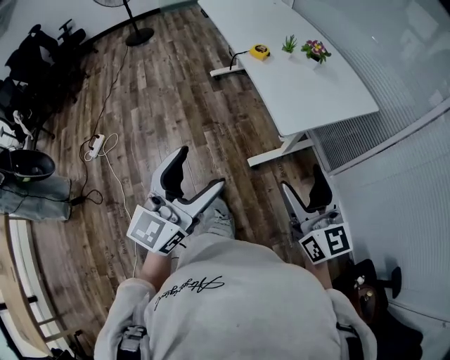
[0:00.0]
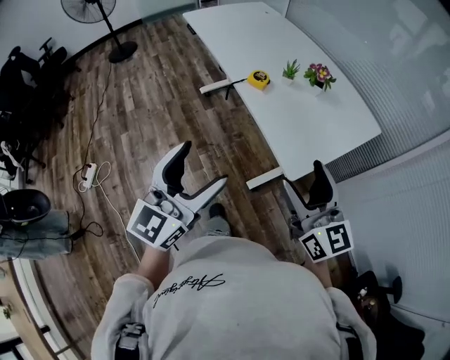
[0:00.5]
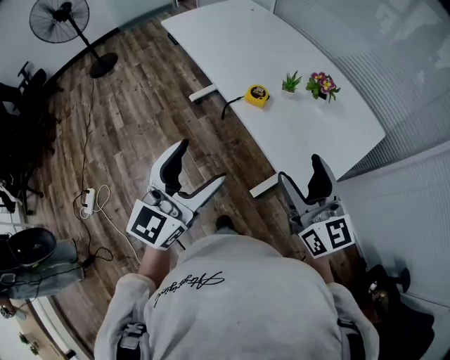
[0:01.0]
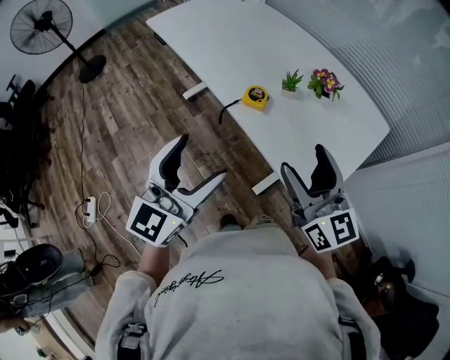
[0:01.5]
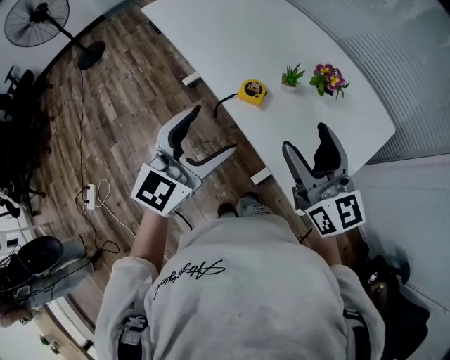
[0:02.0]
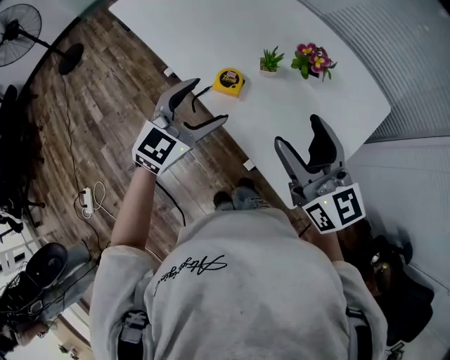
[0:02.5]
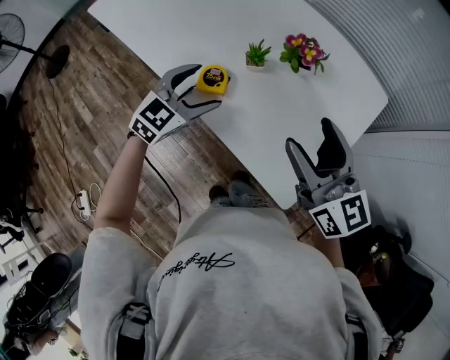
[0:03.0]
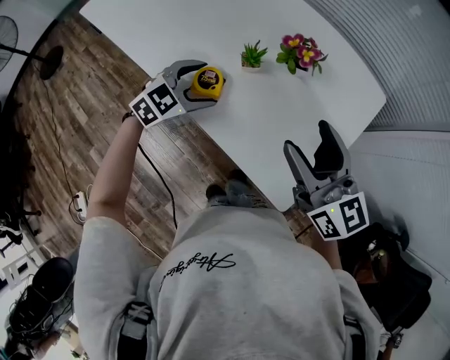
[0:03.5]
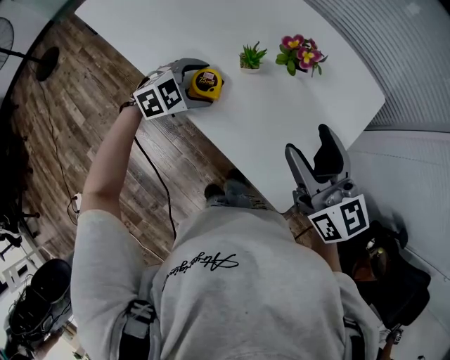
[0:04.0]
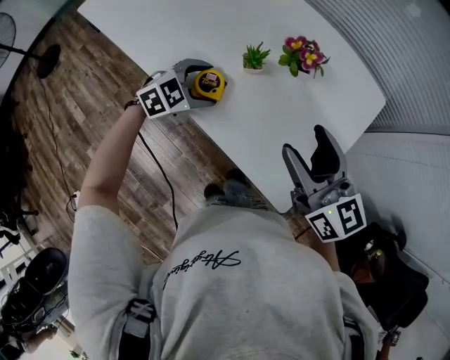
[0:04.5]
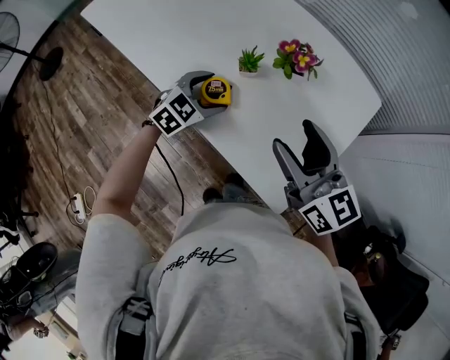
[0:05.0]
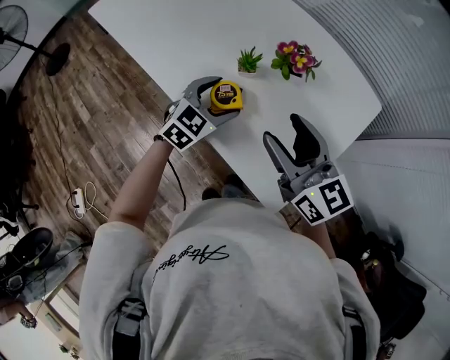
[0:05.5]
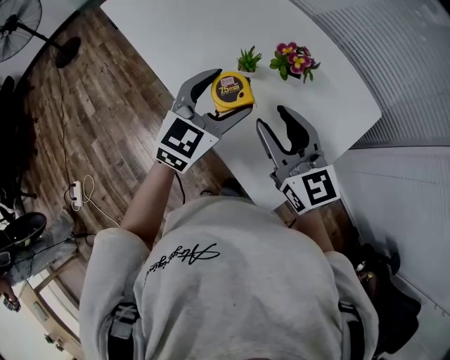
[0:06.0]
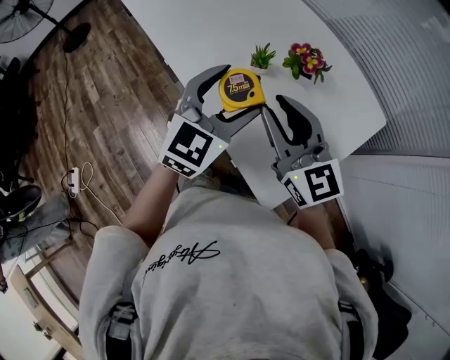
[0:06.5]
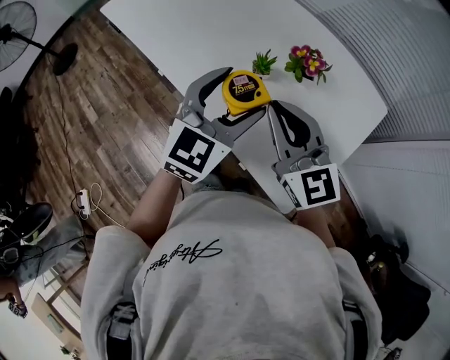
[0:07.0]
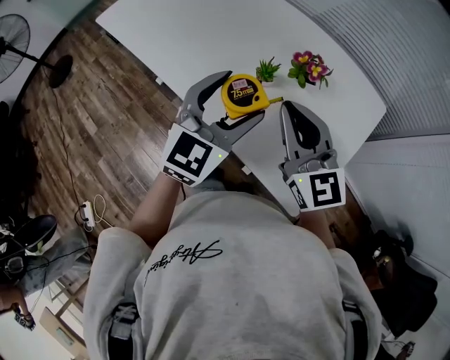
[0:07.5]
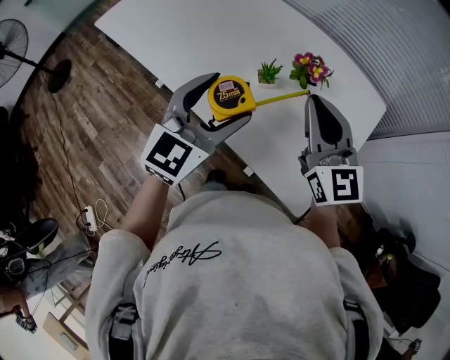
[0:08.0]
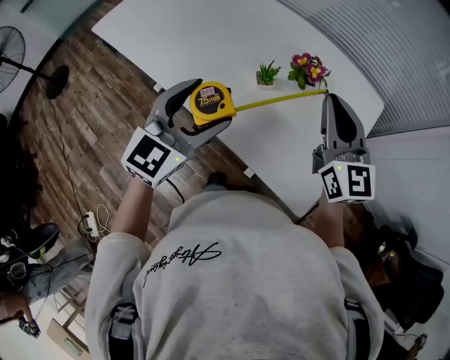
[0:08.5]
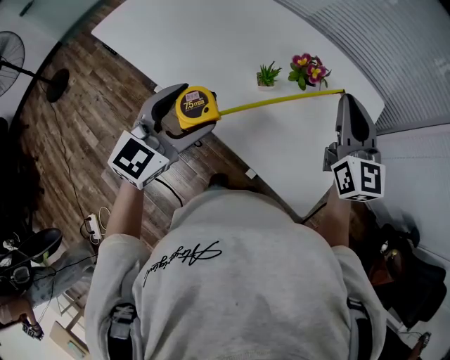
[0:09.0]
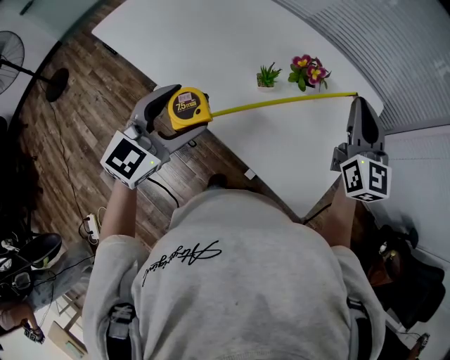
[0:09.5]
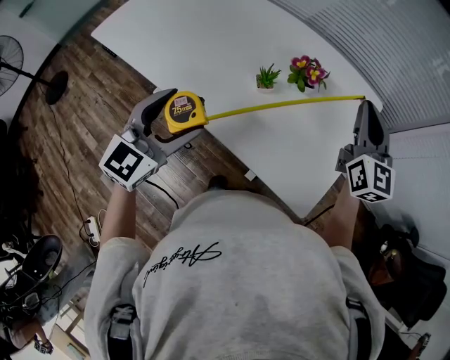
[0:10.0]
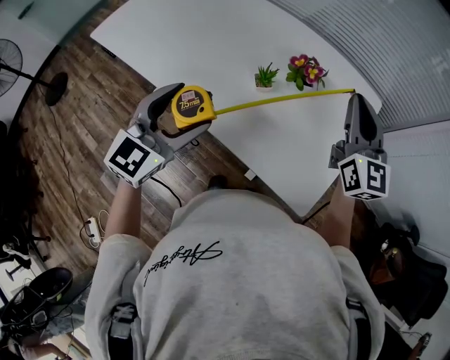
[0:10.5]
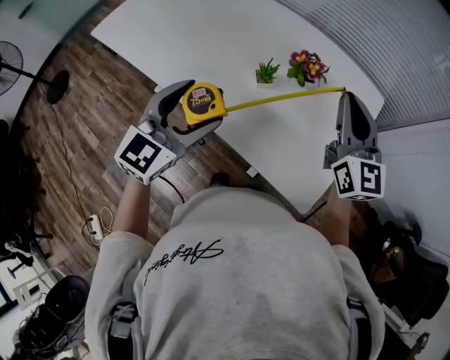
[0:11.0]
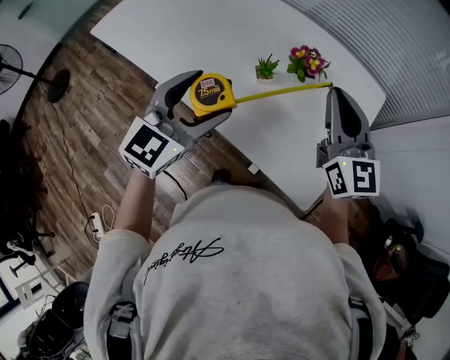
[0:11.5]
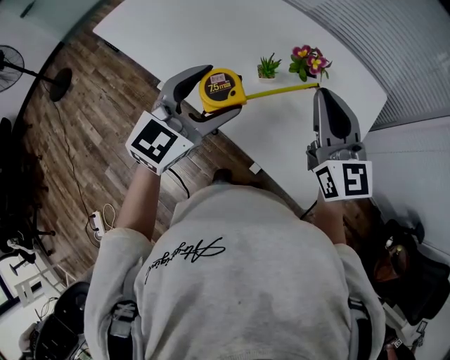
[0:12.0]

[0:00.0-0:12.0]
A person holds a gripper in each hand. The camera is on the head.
0.0 to 2.0 s: Both grippers move forward, roughly 40 cm. The left gripper changes its angle by about 20 degrees.
2.0 to 4.0 s: The left gripper is displaced downward and forward by roughly 30 cm, and angles its fingers downward, by some 40 degrees. The right gripper shifts approximately 10 cm to the right, forward and downward.
4.0 to 6.0 s: The right gripper closes its fingers. The left gripper goes some 15 cm upward and to the right, and points its fingers approximately 30 degrees further upward.
6.0 to 8.0 s: The right gripper is displaced upward by approximately 5 cm, turns by roughly 20 degrees, and closes its fingers, while the left gripper goes about 10 cm to the left.
8.0 to 10.0 s: The right gripper shifts some 15 cm to the right and forward, and changes its angle by approximately 20 degrees, while the left gripper shifts some 10 cm to the left.
10.0 to 12.0 s: The right gripper is displaced to the left and backward by approximately 15 cm, while the left gripper is displaced to the right by roughly 5 cm.

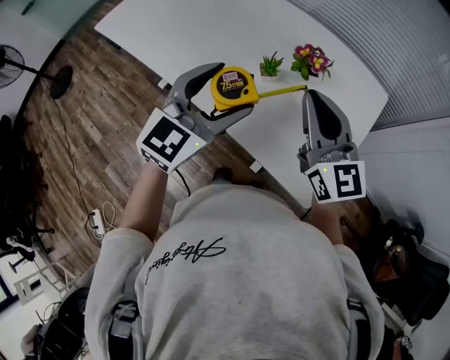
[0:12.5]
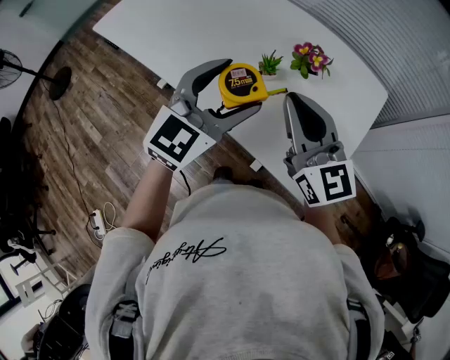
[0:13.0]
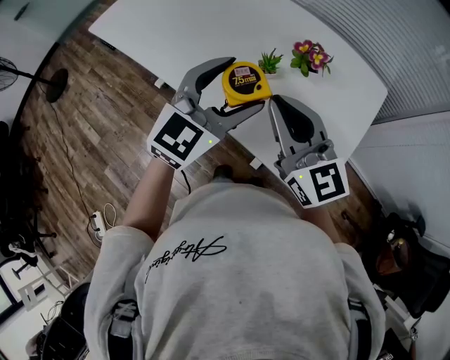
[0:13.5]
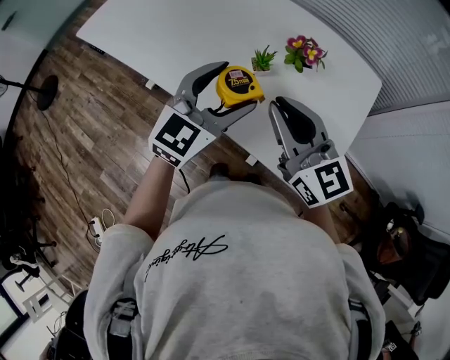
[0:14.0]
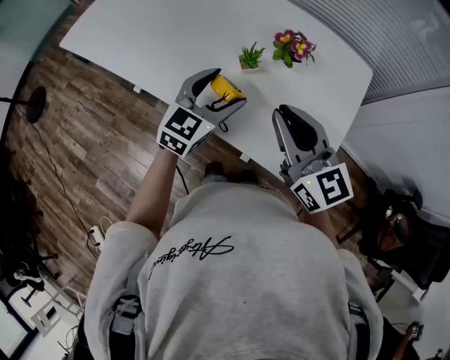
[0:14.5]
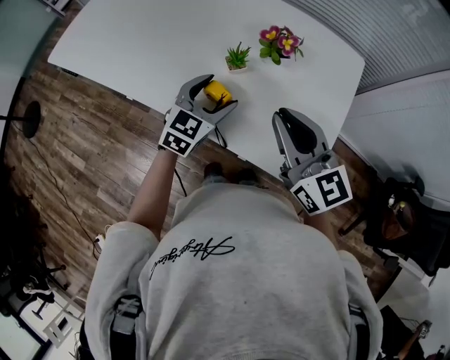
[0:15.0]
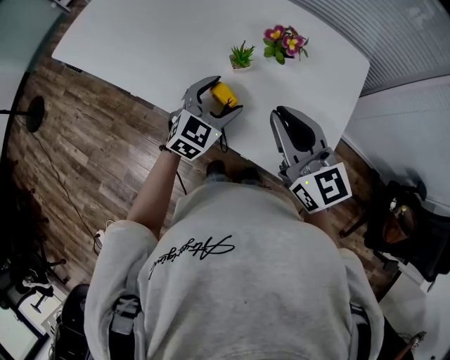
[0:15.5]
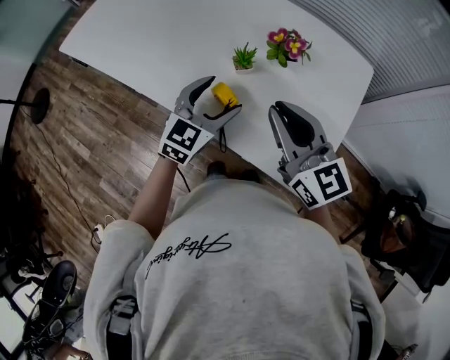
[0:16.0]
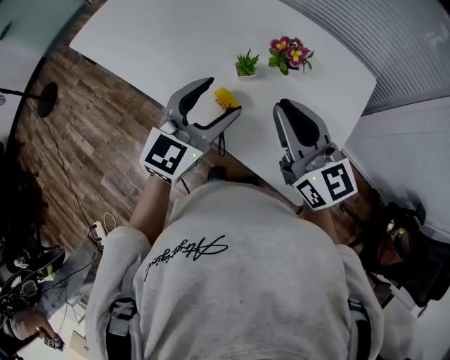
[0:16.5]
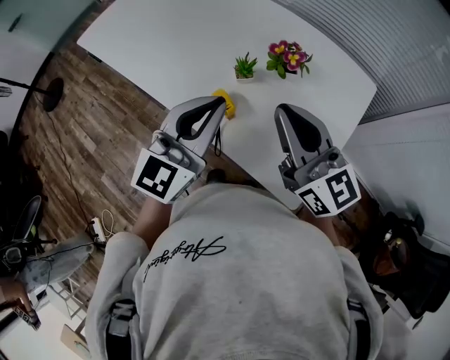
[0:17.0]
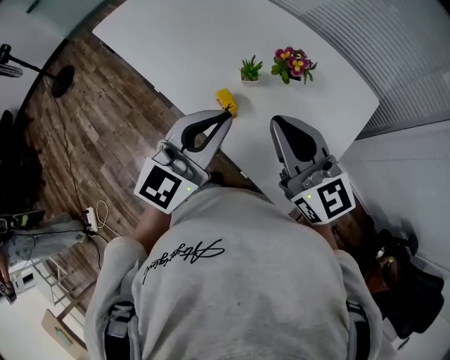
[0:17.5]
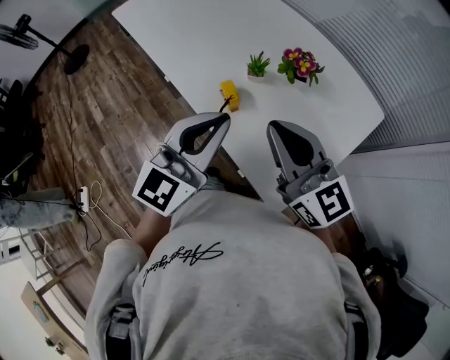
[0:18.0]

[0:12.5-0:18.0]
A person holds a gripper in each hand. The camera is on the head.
12.5 to 14.5 s: The left gripper is displaced downward by roughly 10 cm. The right gripper changes place by roughly 5 cm.
14.5 to 16.0 s: The grippers stay close to where they were, moving slightly.
16.0 to 18.0 s: The left gripper is displaced upward and backward by some 20 cm, turns by approximately 30 degrees, and closes. The right gripper changes place by roughly 5 cm, and rotates roughly 20 degrees.

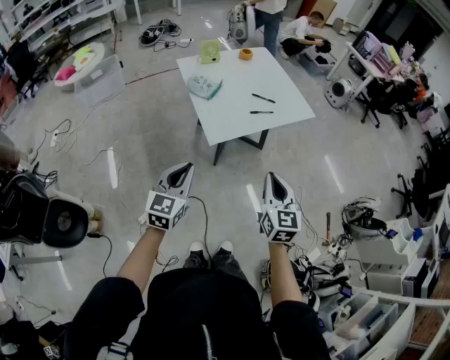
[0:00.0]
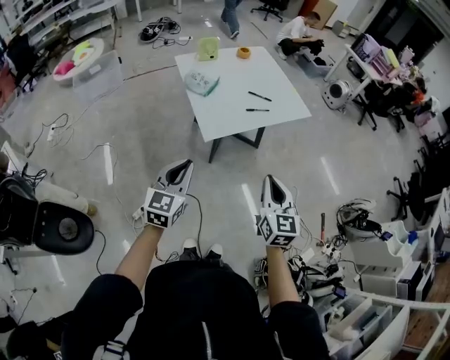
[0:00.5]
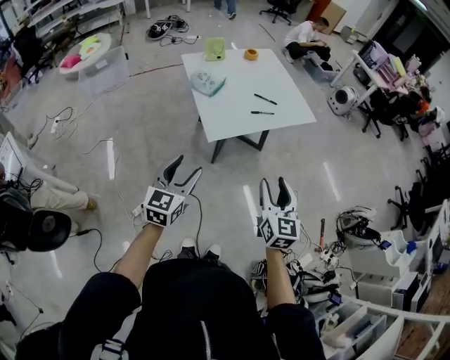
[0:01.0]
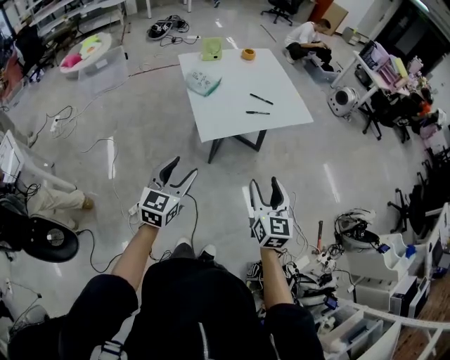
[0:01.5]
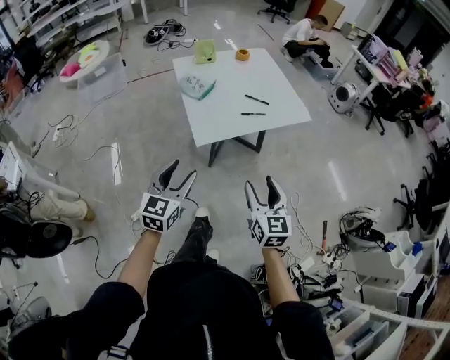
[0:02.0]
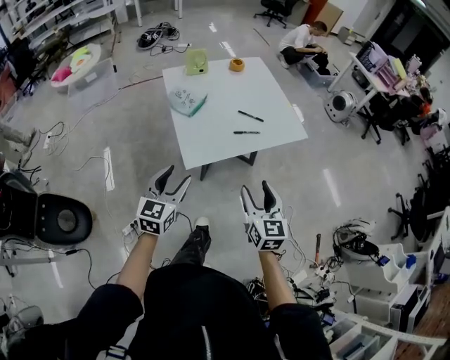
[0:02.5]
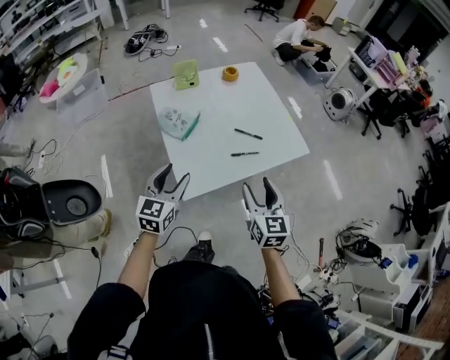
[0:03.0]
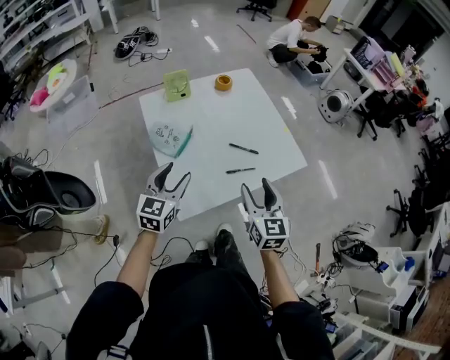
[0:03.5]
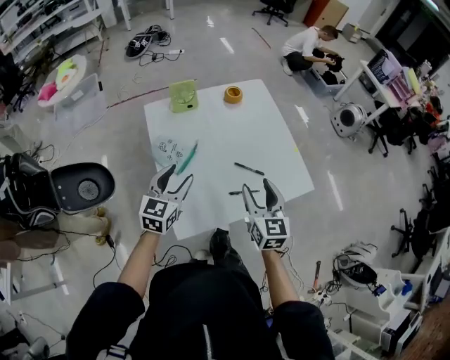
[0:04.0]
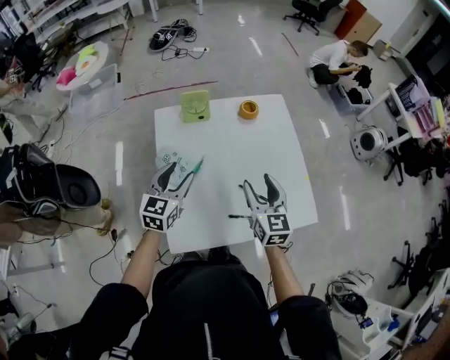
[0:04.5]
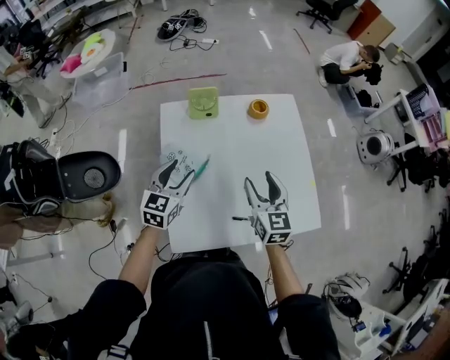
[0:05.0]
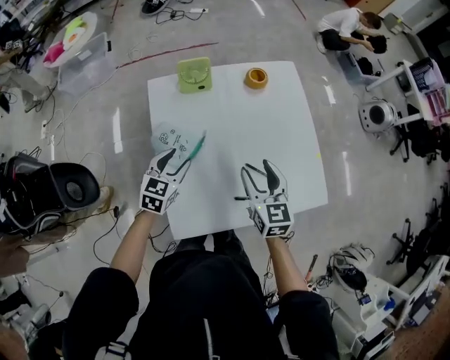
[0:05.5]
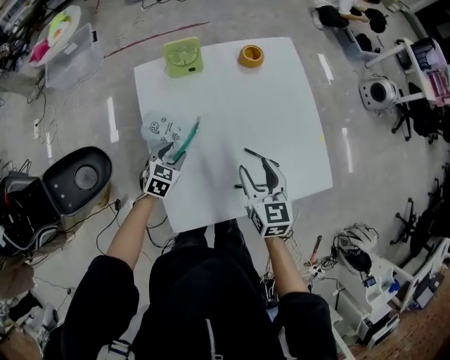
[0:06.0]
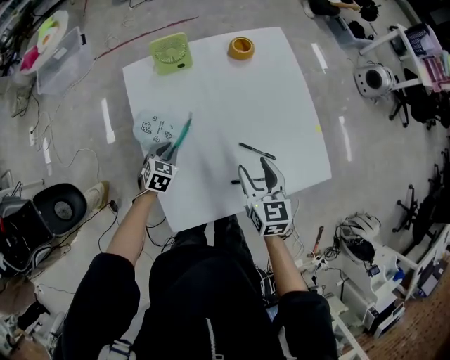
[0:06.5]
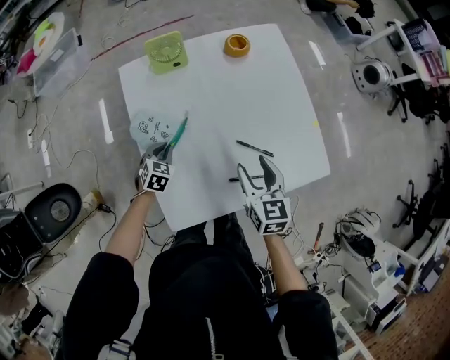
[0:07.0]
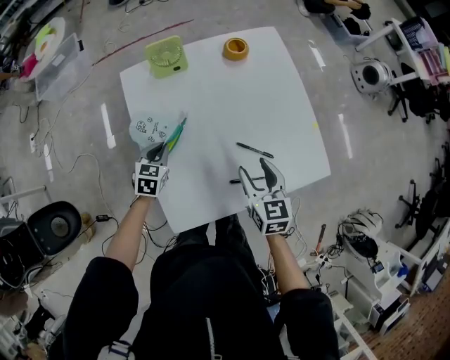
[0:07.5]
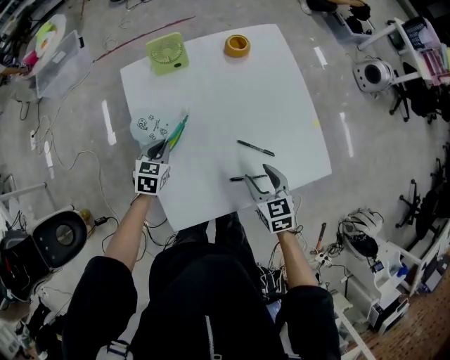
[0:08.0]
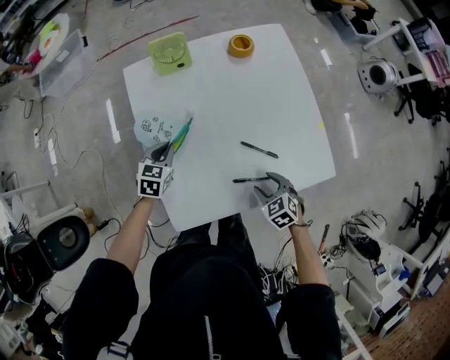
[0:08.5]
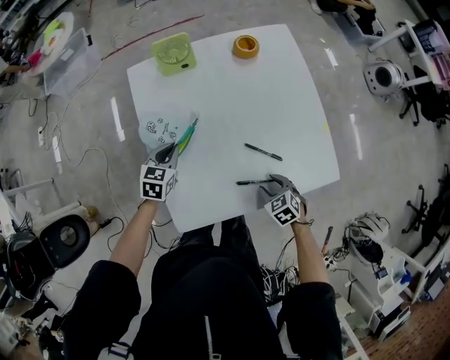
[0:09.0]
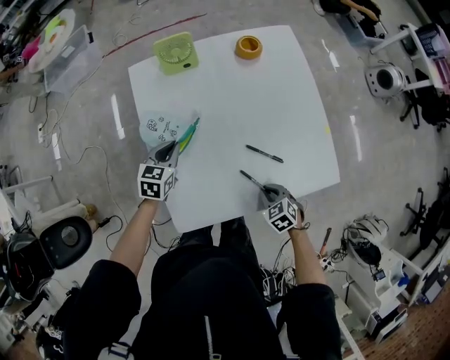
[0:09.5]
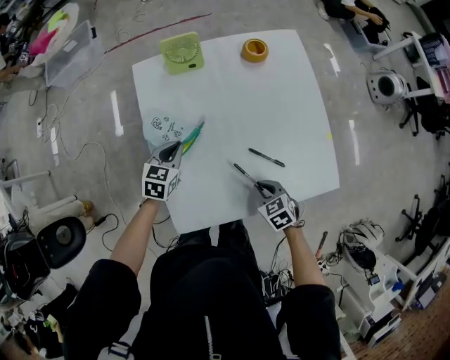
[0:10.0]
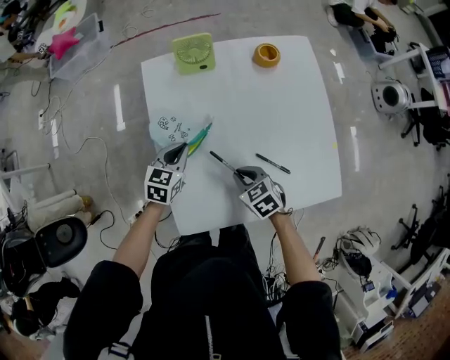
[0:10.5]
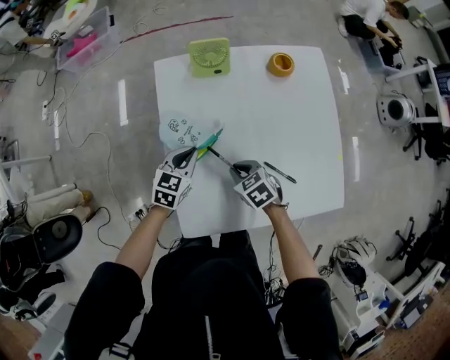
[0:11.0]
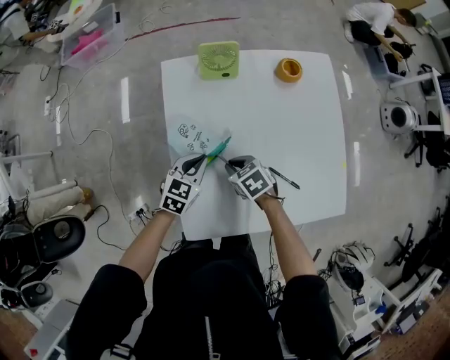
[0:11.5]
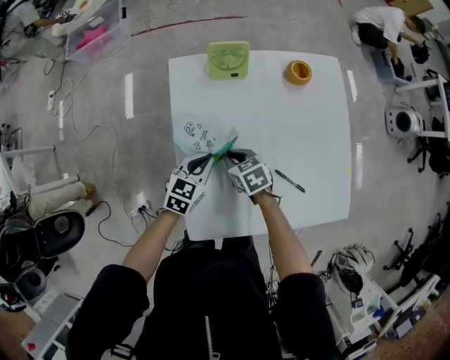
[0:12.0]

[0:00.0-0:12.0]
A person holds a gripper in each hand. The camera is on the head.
0.0 to 2.0 s: The right gripper moves roughly 5 cm, and opens up. Meanwhile the left gripper heads to the right, covering approximately 5 cm, and opens its fingers.
2.0 to 4.0 s: The two grippers travel together, forward, approximately 40 cm.
4.0 to 6.0 s: The left gripper goes approximately 25 cm downward and forward, and swivels approximately 30 degrees, while the right gripper goes about 15 cm forward and downward.
6.0 to 8.0 s: The left gripper closes up, while the right gripper goes about 10 cm downward and backward.
8.0 to 10.0 s: The right gripper goes roughly 10 cm downward, swivels roughly 30 degrees, and closes up.
10.0 to 12.0 s: The right gripper goes about 25 cm forward and to the left.
